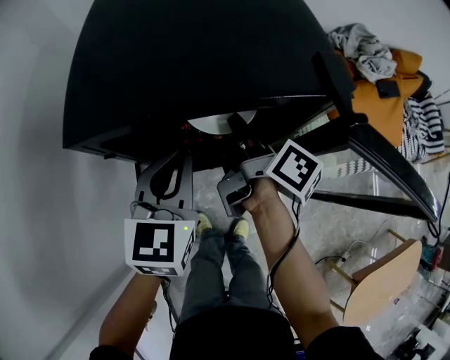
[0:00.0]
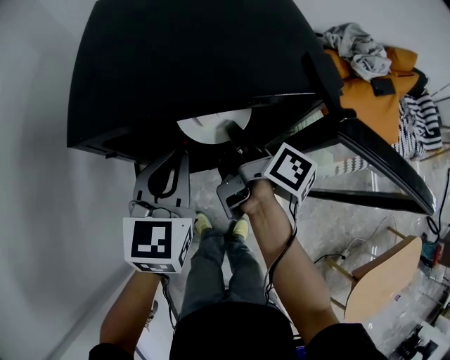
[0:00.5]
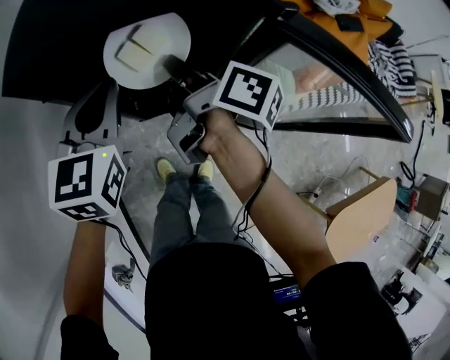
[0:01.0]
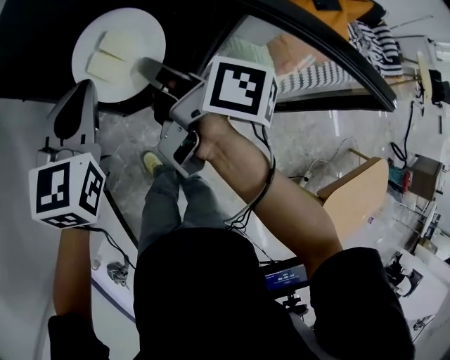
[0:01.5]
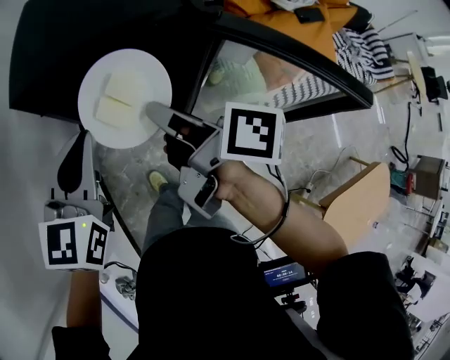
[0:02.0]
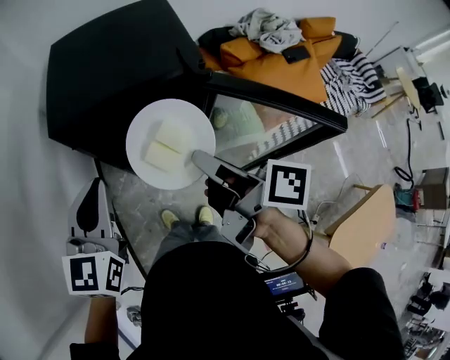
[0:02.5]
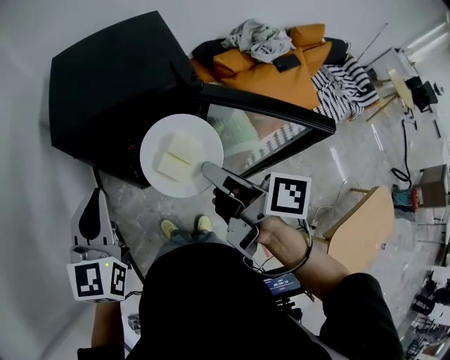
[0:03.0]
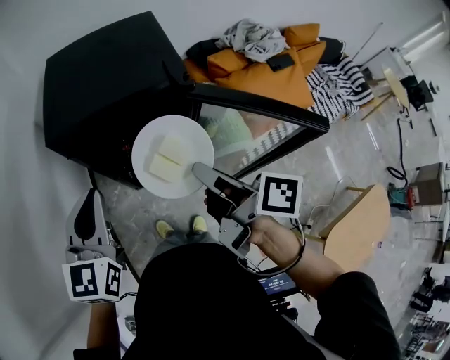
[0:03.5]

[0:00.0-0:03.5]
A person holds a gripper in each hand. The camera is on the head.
0:00.0 to 0:02.0: The grippers both shift backward and upward by approximately 15 cm.
0:02.0 to 0:03.5: The right gripper is displaced backward, to the right and upward by some 10 cm, while the left gripper is displaced upward by about 5 cm.

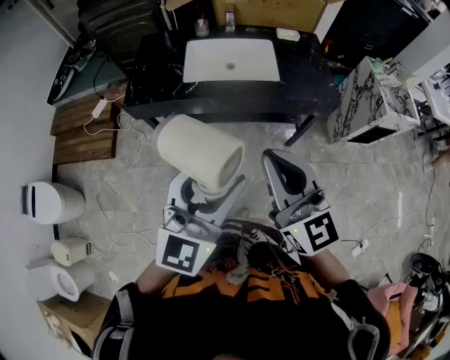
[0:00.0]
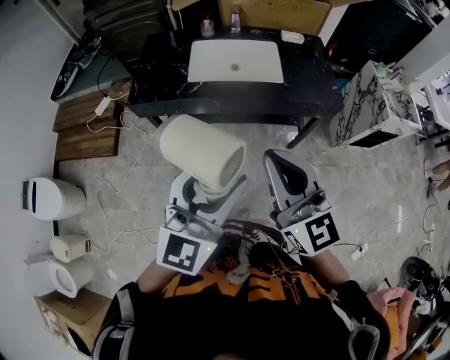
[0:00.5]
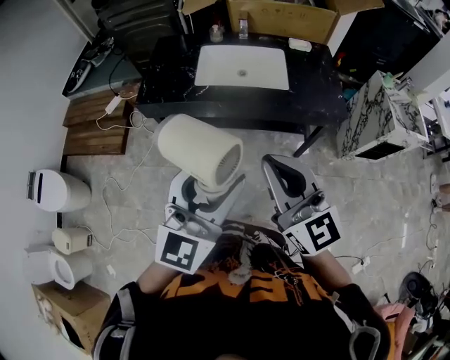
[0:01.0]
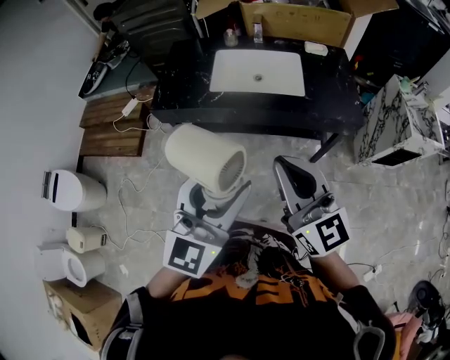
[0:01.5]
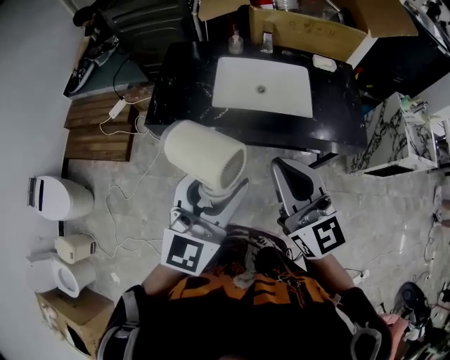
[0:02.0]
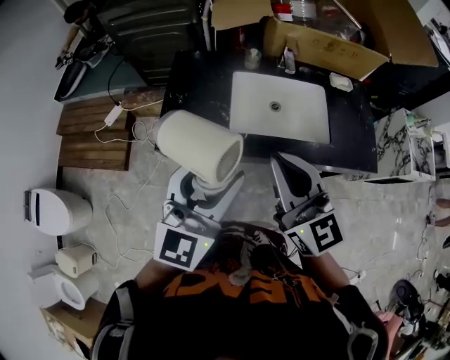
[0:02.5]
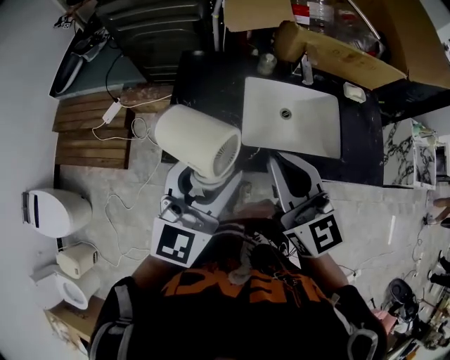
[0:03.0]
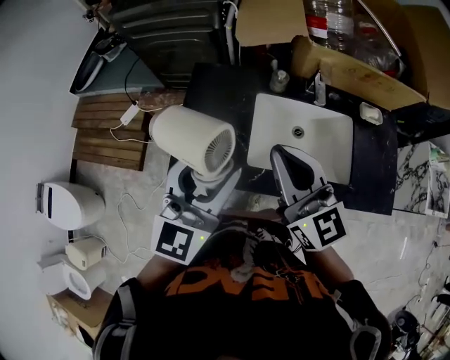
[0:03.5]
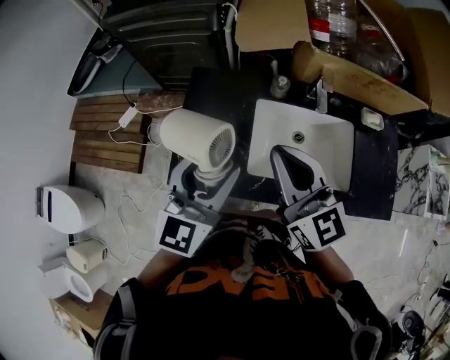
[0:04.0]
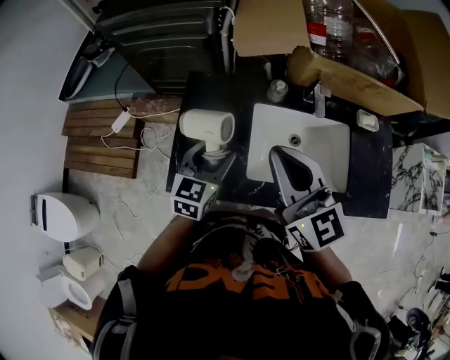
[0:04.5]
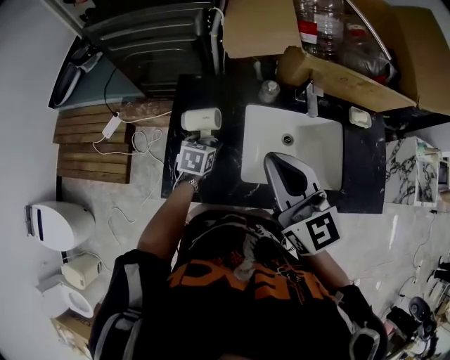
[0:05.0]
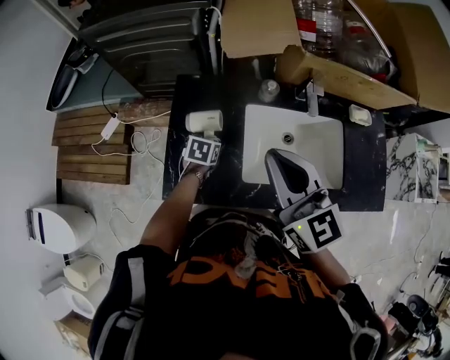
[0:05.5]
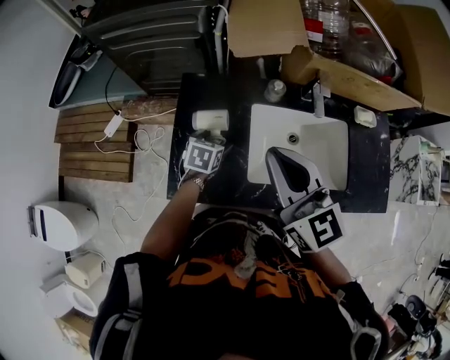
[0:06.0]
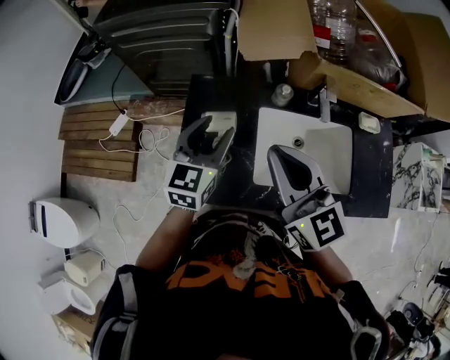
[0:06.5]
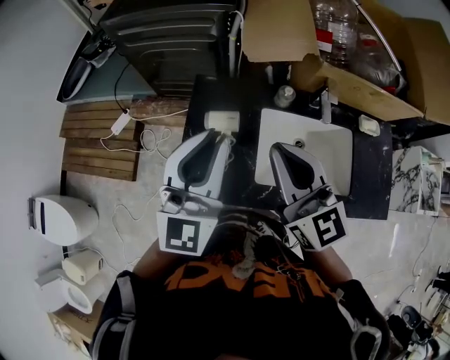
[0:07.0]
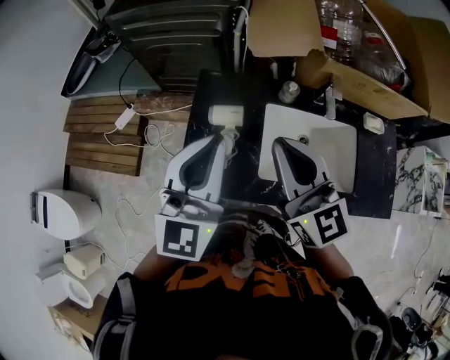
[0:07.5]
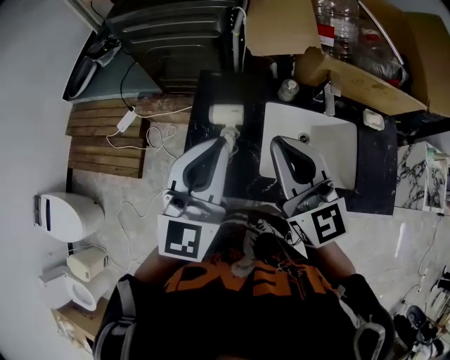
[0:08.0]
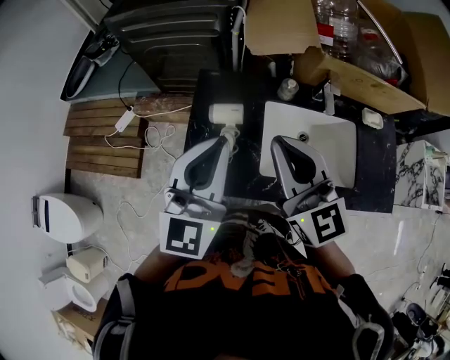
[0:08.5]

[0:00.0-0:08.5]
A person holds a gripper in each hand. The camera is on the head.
0:00.0 to 0:02.0: The right gripper shifts some 15 cm forward. The left gripper is displaced forward and to the left by some 15 cm.
0:02.0 to 0:04.0: Both grippers move forward, approximately 35 cm.
0:04.0 to 0:06.5: The left gripper goes some 15 cm forward and to the left, and goes downward and returns, approximately 35 cm each way. The right gripper is displaced to the left by approximately 5 cm.
0:06.5 to 0:08.5: The left gripper goes about 15 cm upward and backward, changes its angle by roughly 20 degrees, and closes.

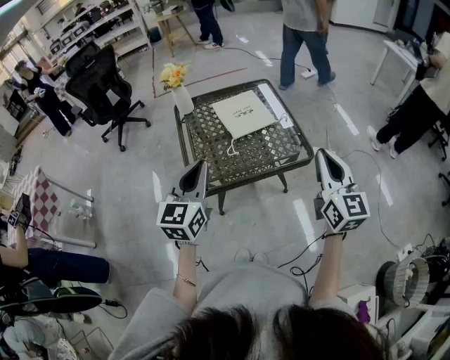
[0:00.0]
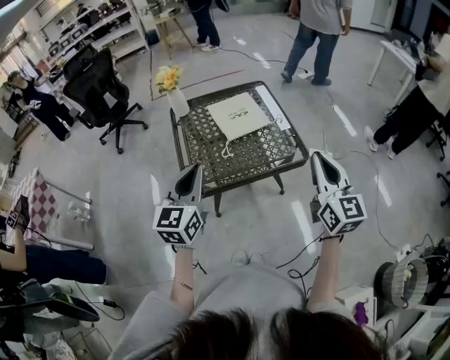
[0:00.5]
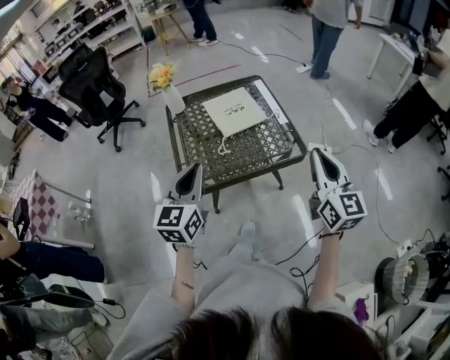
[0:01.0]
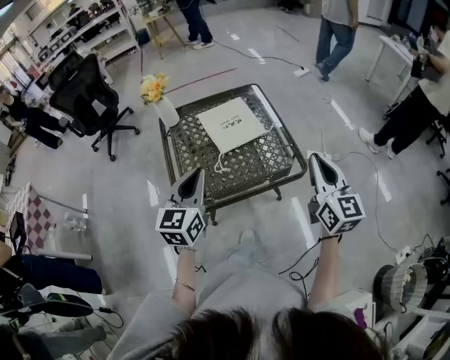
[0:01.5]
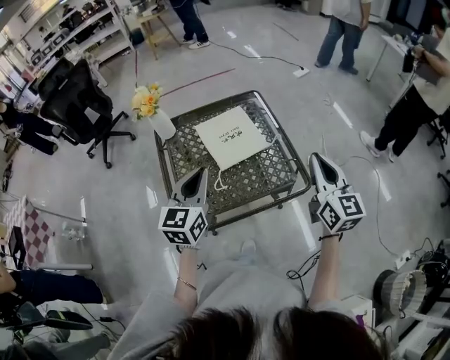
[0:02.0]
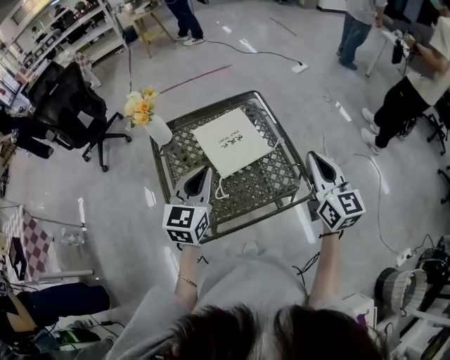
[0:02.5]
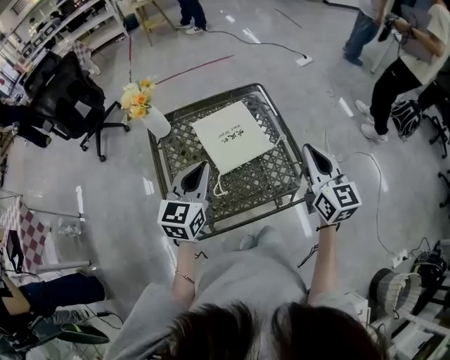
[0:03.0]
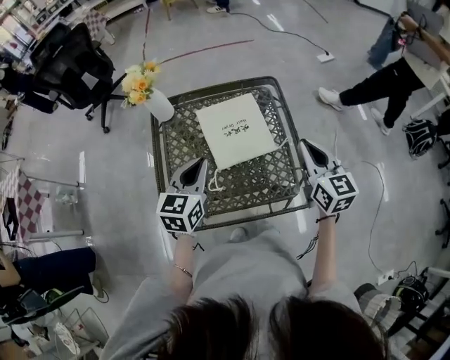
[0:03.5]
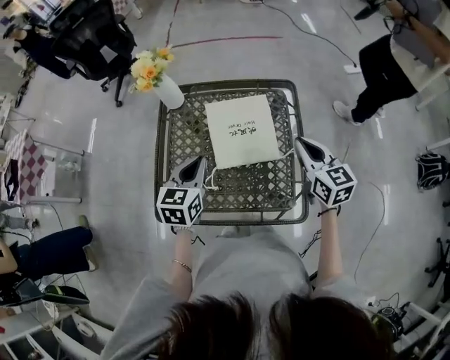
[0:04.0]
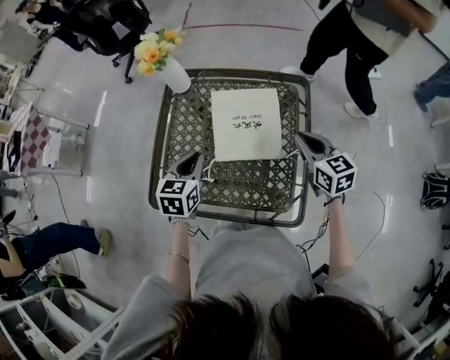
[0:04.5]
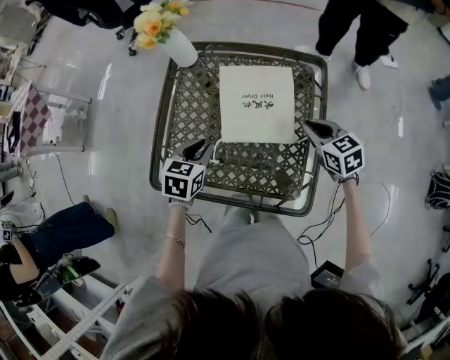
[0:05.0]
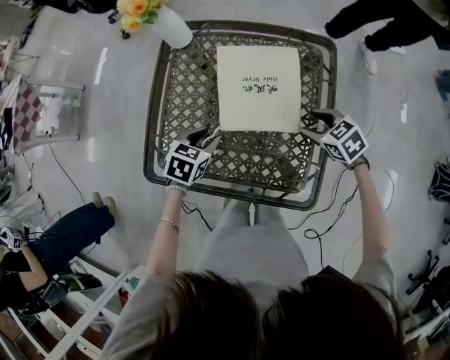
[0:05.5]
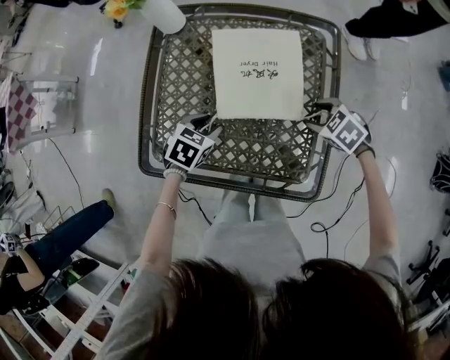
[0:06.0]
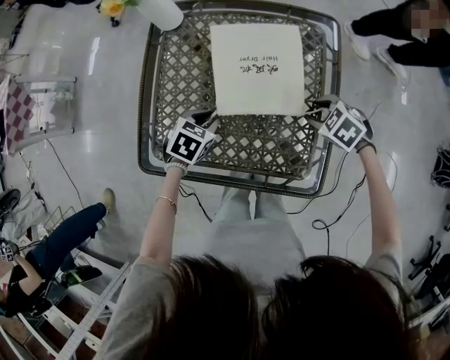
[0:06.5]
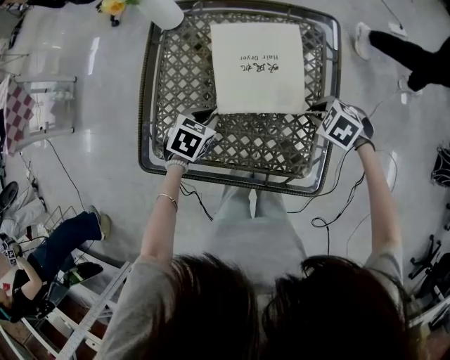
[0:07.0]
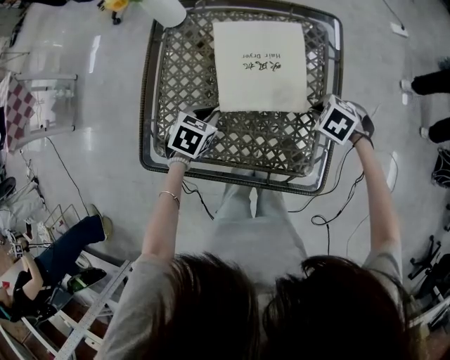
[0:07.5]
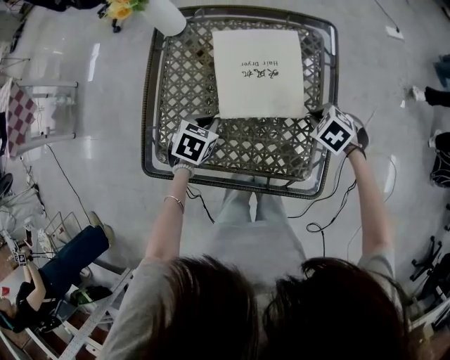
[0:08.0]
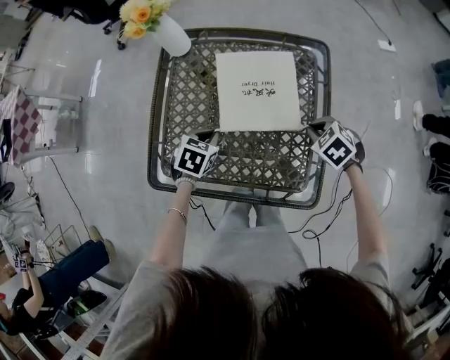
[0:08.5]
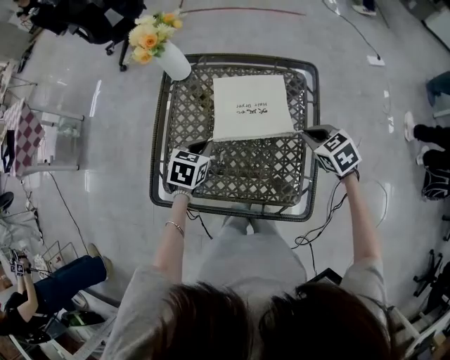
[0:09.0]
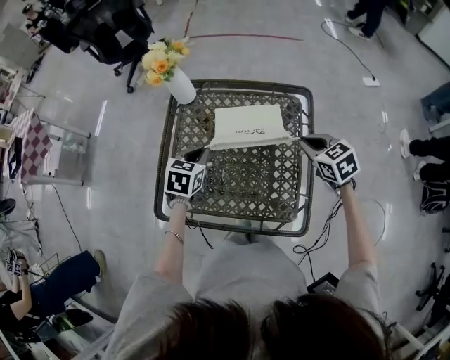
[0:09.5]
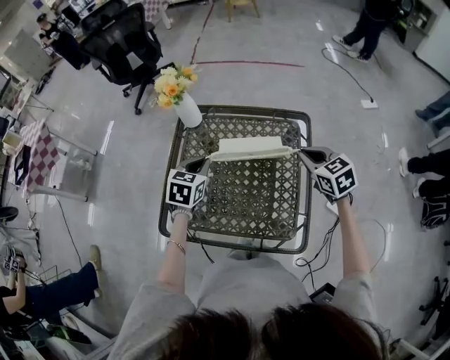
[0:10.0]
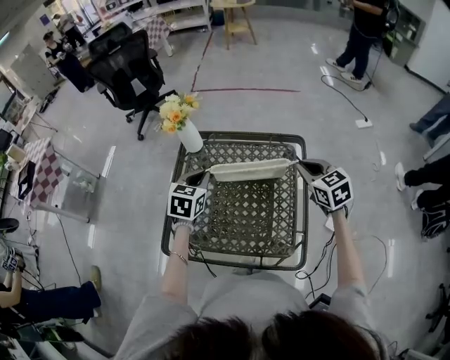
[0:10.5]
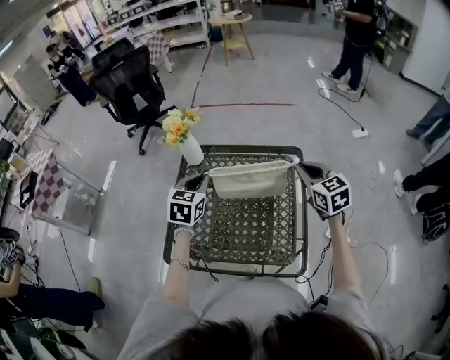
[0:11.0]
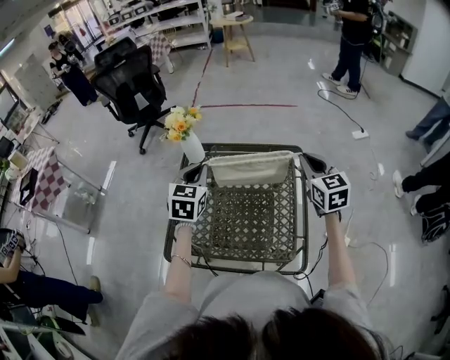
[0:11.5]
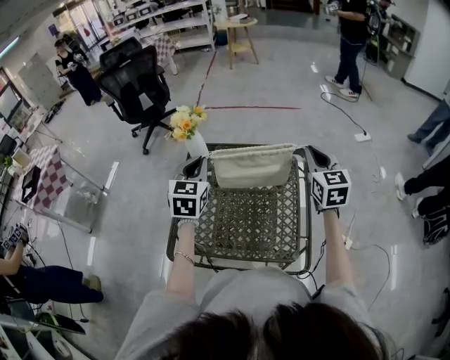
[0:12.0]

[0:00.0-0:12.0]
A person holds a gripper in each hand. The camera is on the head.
0:00.0 to 0:02.0: The two grippers go roughly 20 cm forward.
0:02.0 to 0:04.0: The right gripper goes roughly 25 cm forward and downward, and changes its angle by about 40 degrees. Meanwhile the left gripper moves forward and downward, roughly 15 cm, and turns by roughly 30 degrees.
0:04.0 to 0:06.0: The two grippers go approximately 25 cm downward. The right gripper tips its fingers downward by about 50 degrees, and opens up. The left gripper points its fingers some 30 degrees further downward, and opens up.
0:06.0 to 0:08.0: The right gripper closes up. Meanwhile the left gripper closes.
0:08.0 to 0:10.0: Both grippers move upward, some 20 cm. The left gripper rotates approximately 20 degrees, while the right gripper tips its fingers upward by some 40 degrees.
0:10.0 to 0:12.0: Both grippers move upward, some 15 cm. The right gripper turns by approximately 30 degrees. The left gripper changes its angle by approximately 30 degrees.

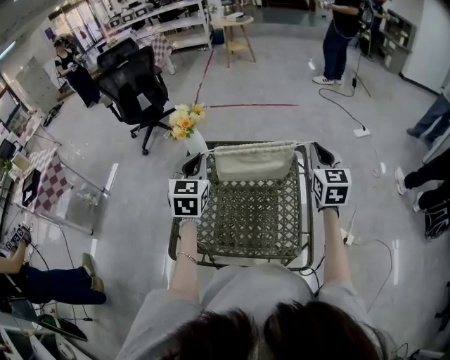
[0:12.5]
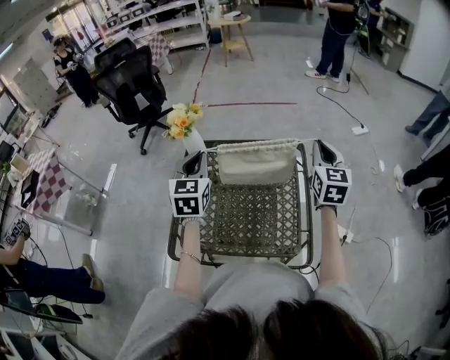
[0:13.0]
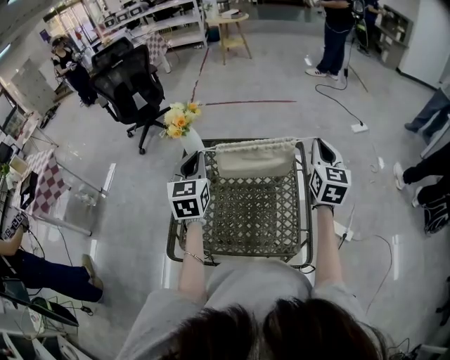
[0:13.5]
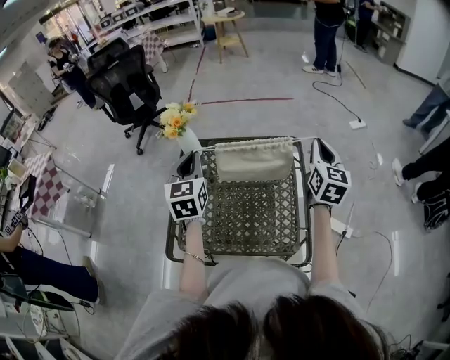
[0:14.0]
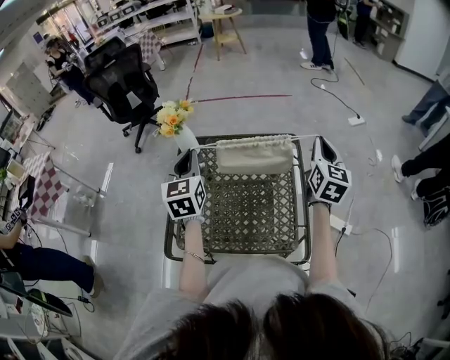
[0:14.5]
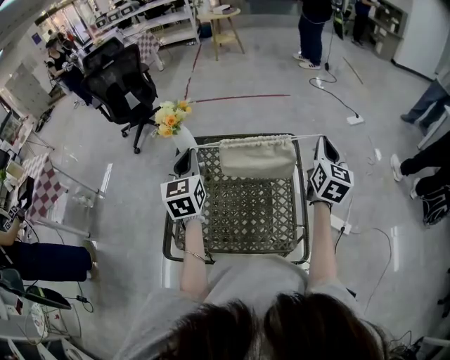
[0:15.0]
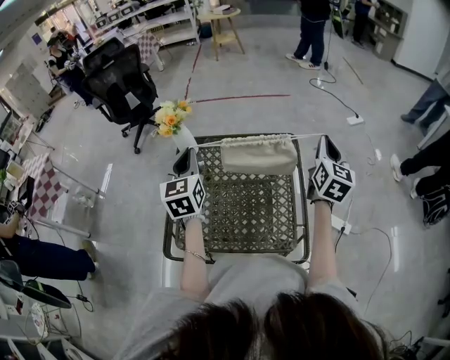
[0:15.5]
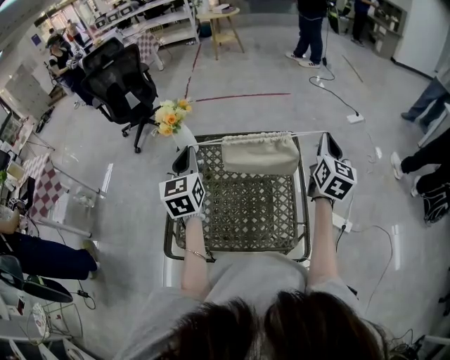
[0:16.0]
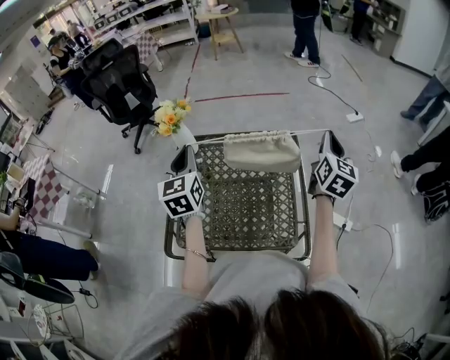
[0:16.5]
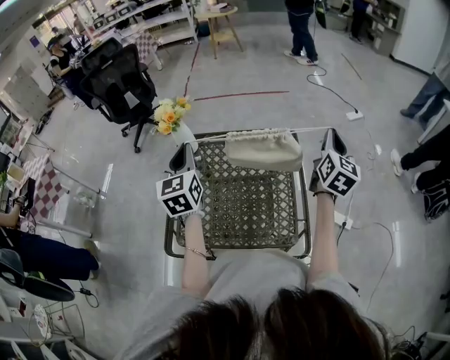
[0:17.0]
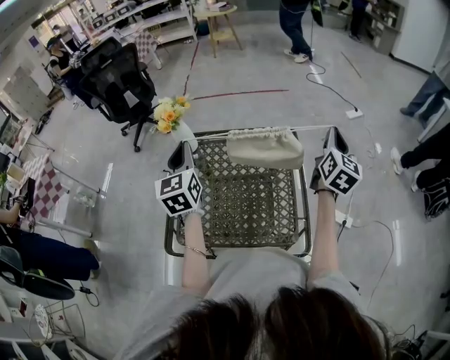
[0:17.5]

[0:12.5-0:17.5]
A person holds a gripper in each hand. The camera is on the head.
0:12.5 to 0:15.0: The right gripper is displaced to the right by approximately 5 cm, and rotates about 20 degrees.
0:15.0 to 0:17.5: The grippers make only small movements.
